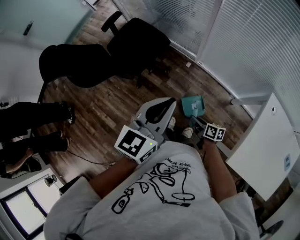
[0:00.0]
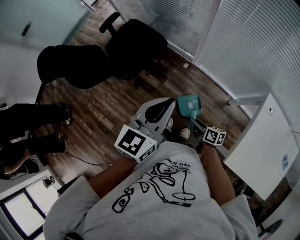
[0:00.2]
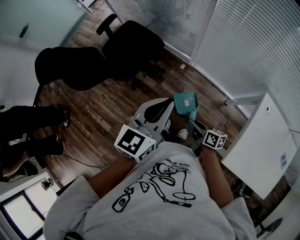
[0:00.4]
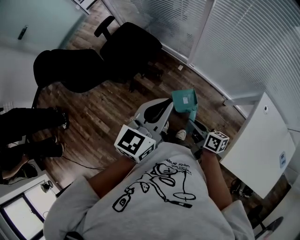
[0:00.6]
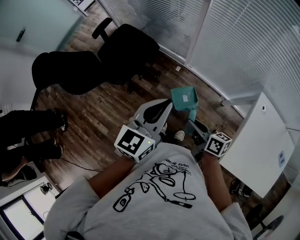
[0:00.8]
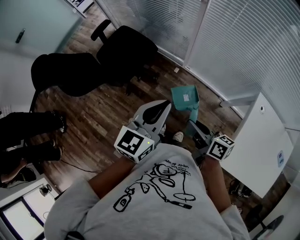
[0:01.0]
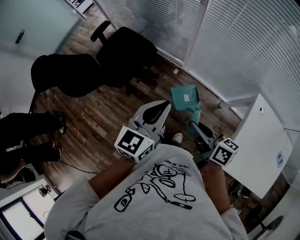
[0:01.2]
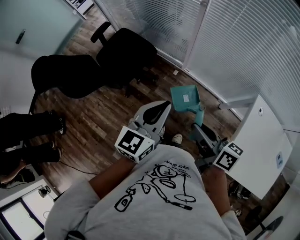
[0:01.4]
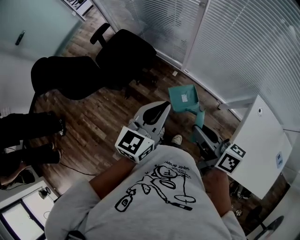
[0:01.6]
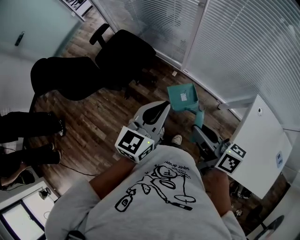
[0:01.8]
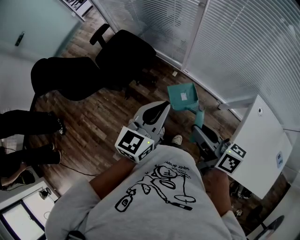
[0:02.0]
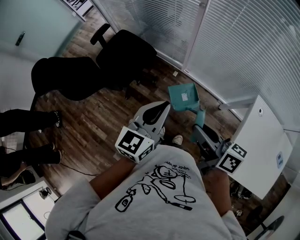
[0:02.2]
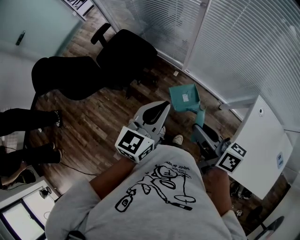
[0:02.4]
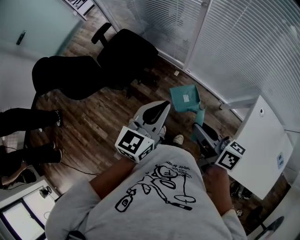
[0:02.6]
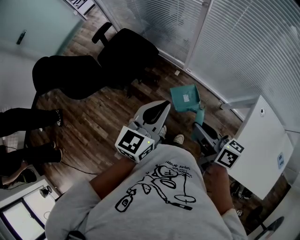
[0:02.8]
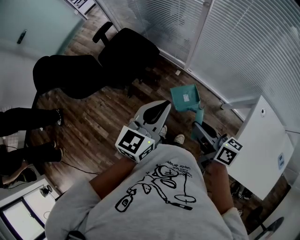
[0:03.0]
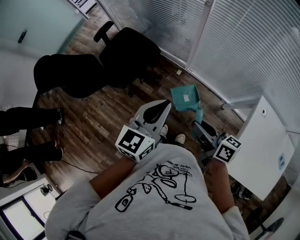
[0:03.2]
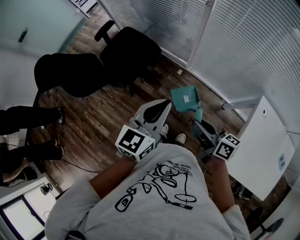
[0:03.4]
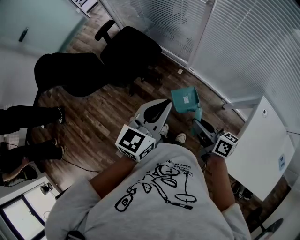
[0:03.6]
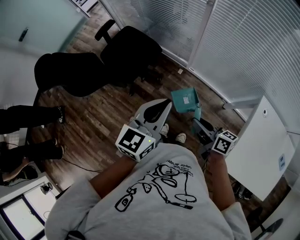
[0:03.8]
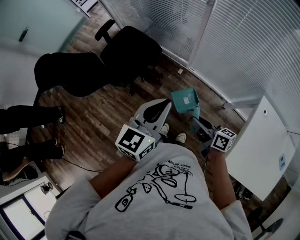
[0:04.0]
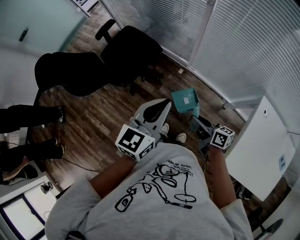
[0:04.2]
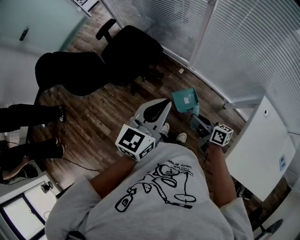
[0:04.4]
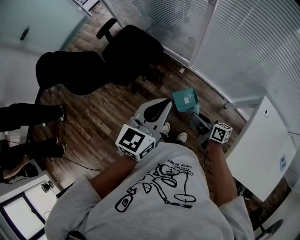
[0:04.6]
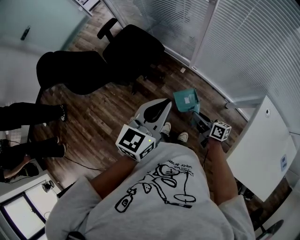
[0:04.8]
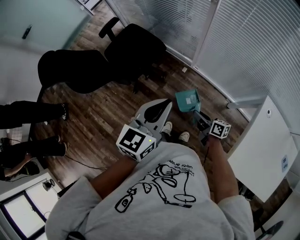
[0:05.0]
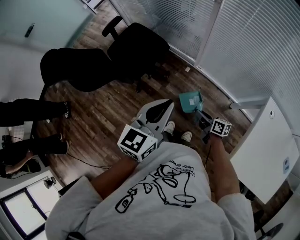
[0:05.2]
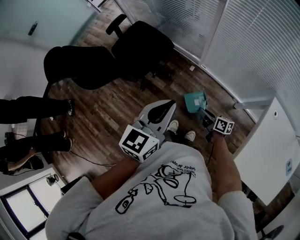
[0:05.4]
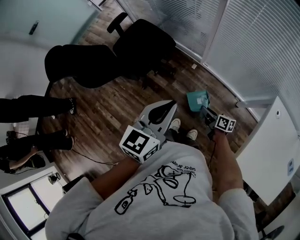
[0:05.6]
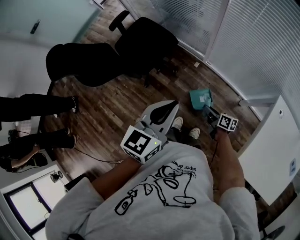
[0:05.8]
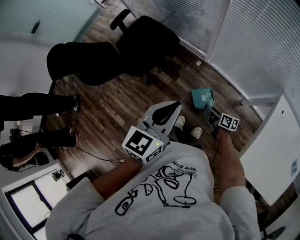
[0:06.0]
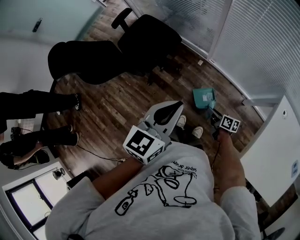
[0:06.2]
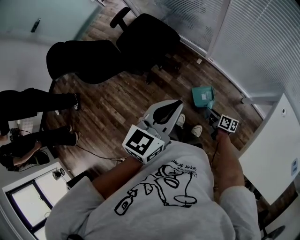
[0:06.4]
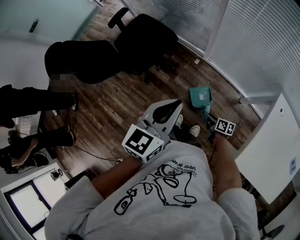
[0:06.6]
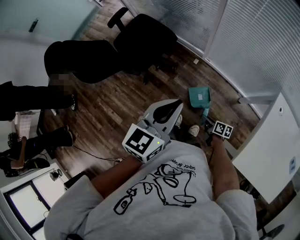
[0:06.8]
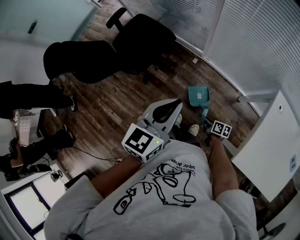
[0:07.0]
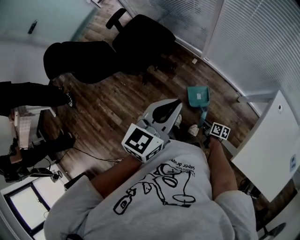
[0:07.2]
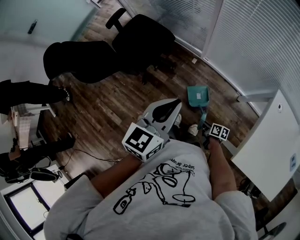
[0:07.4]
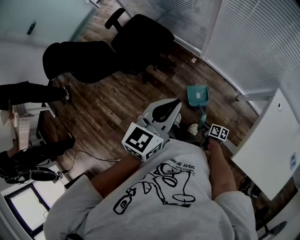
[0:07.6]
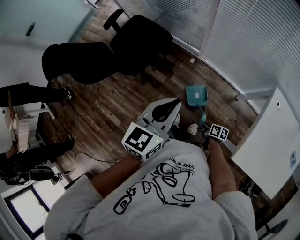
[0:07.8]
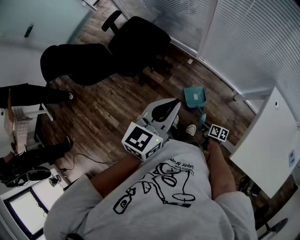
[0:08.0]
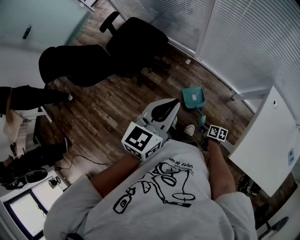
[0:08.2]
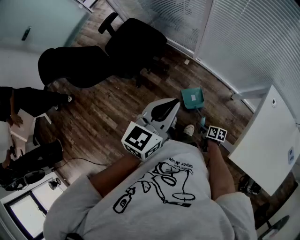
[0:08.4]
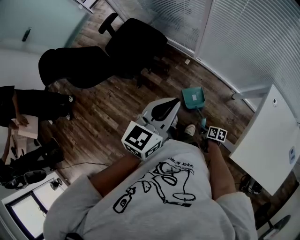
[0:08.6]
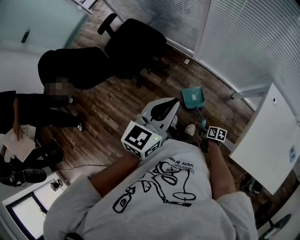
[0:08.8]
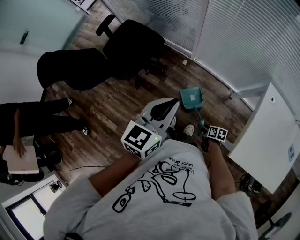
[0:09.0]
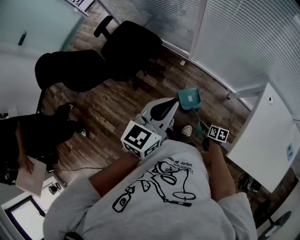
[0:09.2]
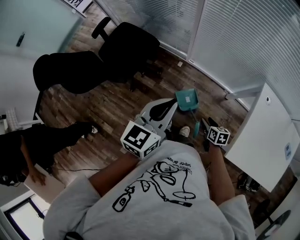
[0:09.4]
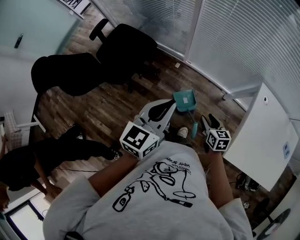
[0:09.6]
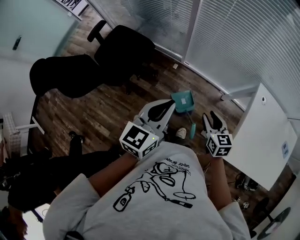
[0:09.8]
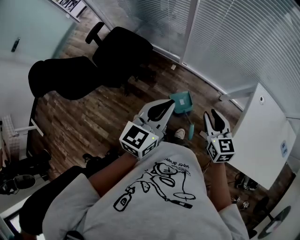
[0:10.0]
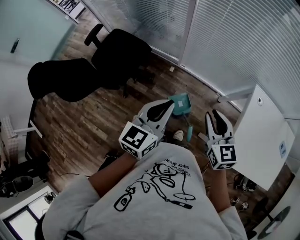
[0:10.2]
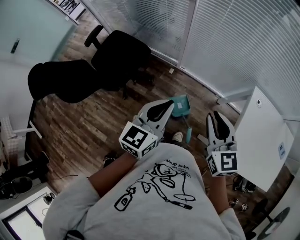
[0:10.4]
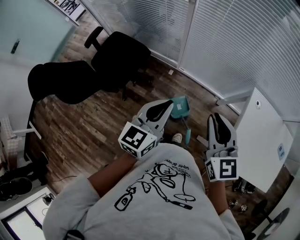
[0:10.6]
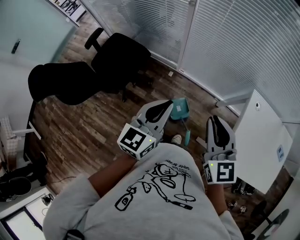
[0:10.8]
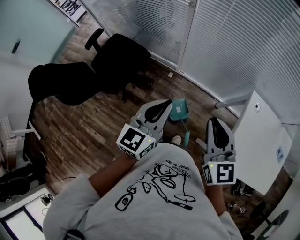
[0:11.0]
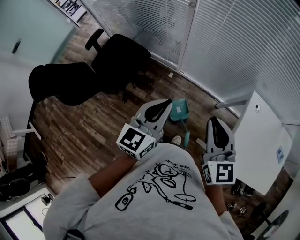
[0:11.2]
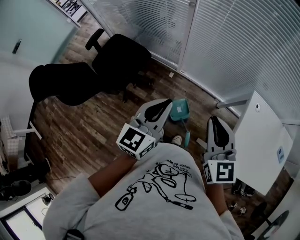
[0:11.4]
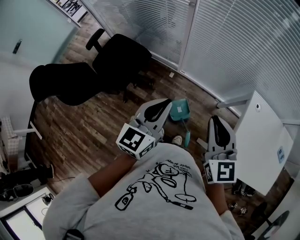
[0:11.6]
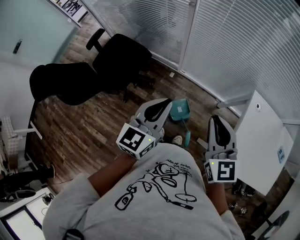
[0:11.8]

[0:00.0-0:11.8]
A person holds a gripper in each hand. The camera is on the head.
0:00.0 to 0:01.4: The right gripper shifts some 30 cm upward, and rotates about 20 degrees.
0:01.4 to 0:03.0: The grippers stay close to where they were, moving slightly.
0:03.0 to 0:04.4: The right gripper heads downward, covering approximately 15 cm.
0:04.4 to 0:06.0: The right gripper goes roughly 15 cm downward.
0:06.0 to 0:07.4: The right gripper heads backward and downward, covering about 15 cm.
0:07.4 to 0:08.8: The right gripper opens.
0:08.8 to 0:10.4: The right gripper is displaced upward by roughly 40 cm, angles its fingers upward, by about 30 degrees, and closes its fingers.
0:10.4 to 0:11.8: The grippers stay close to where they were, moving slightly.

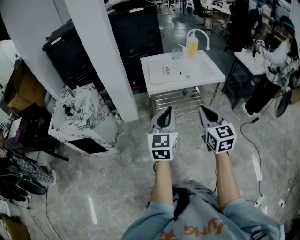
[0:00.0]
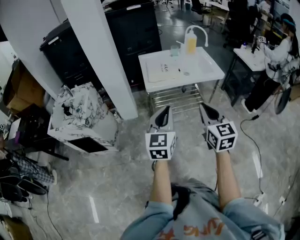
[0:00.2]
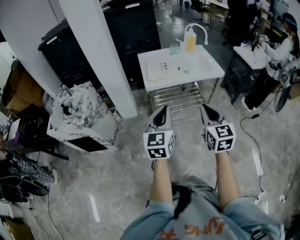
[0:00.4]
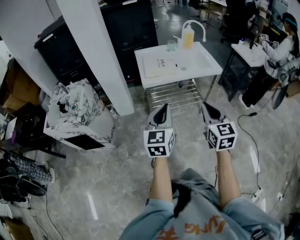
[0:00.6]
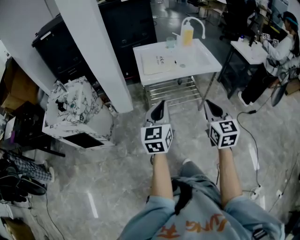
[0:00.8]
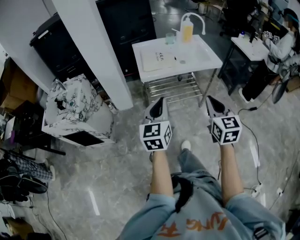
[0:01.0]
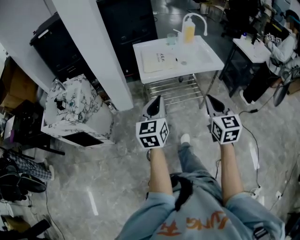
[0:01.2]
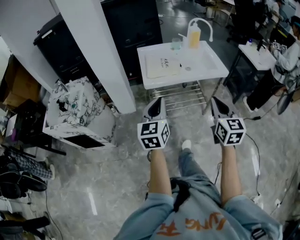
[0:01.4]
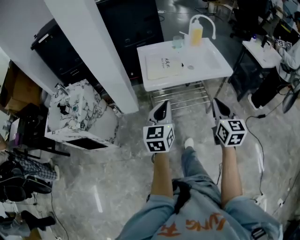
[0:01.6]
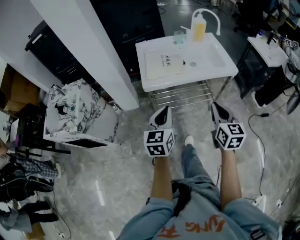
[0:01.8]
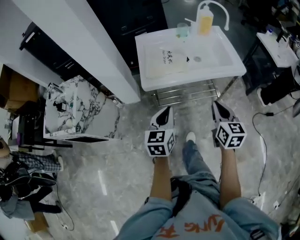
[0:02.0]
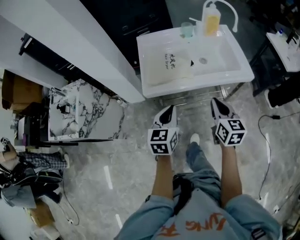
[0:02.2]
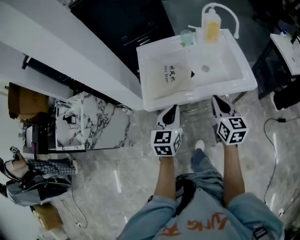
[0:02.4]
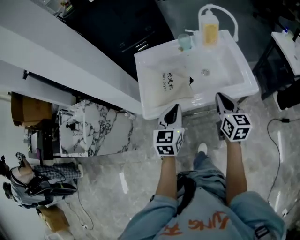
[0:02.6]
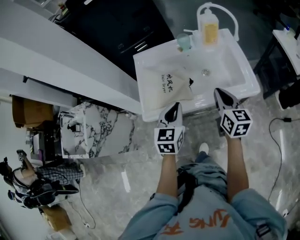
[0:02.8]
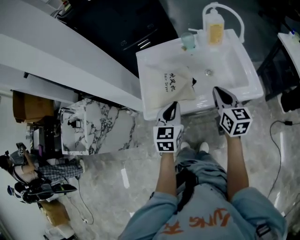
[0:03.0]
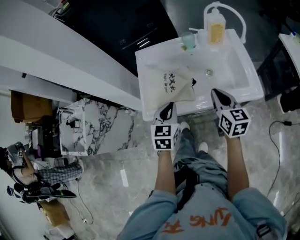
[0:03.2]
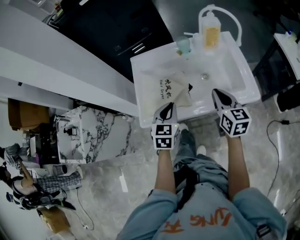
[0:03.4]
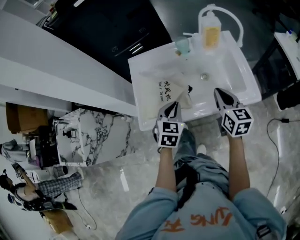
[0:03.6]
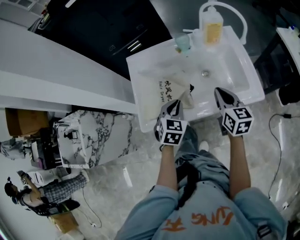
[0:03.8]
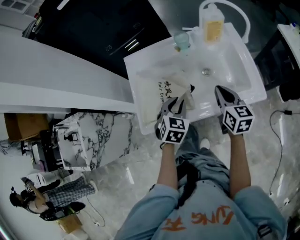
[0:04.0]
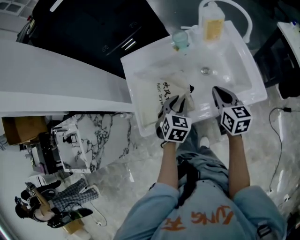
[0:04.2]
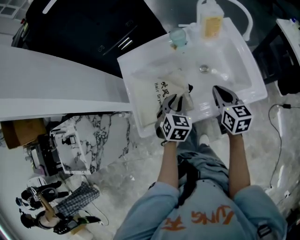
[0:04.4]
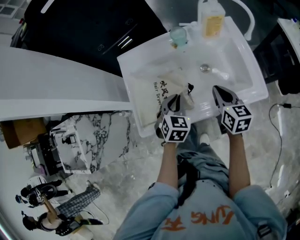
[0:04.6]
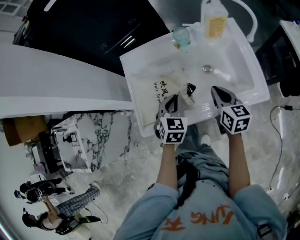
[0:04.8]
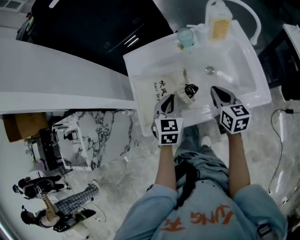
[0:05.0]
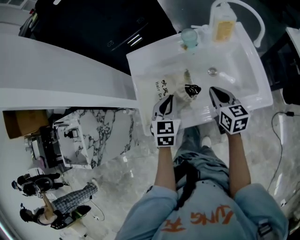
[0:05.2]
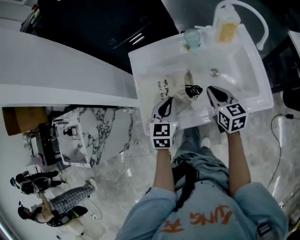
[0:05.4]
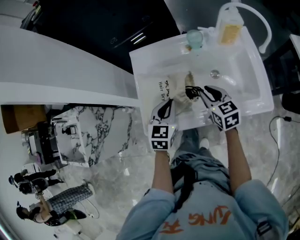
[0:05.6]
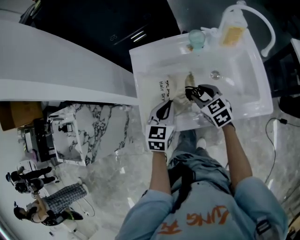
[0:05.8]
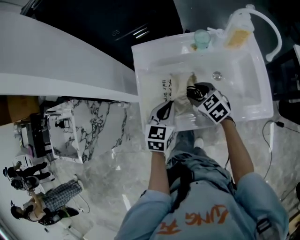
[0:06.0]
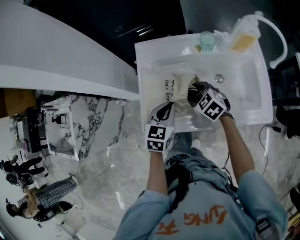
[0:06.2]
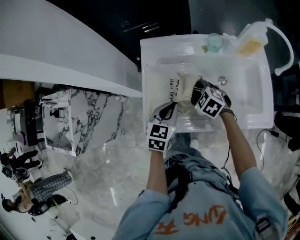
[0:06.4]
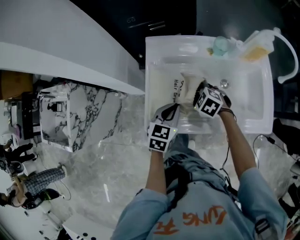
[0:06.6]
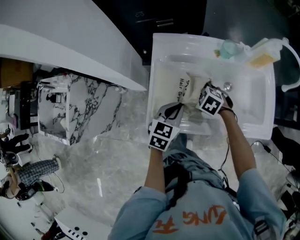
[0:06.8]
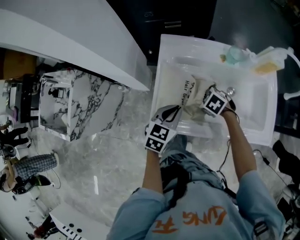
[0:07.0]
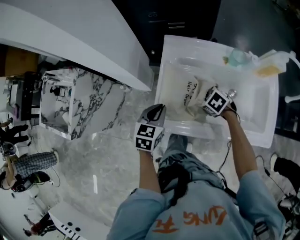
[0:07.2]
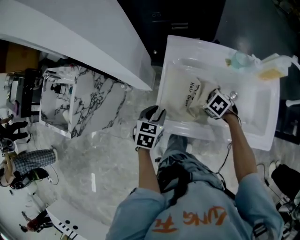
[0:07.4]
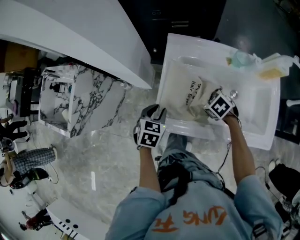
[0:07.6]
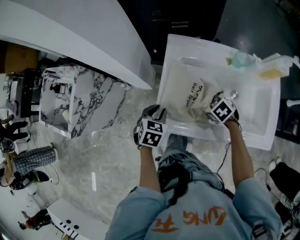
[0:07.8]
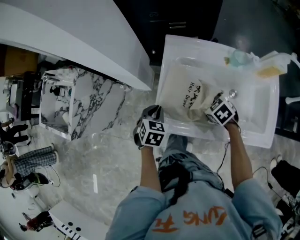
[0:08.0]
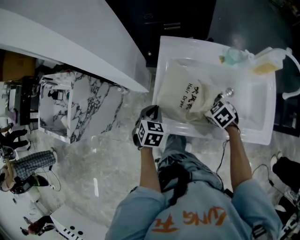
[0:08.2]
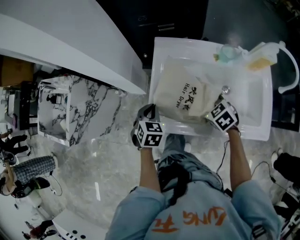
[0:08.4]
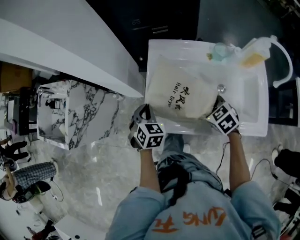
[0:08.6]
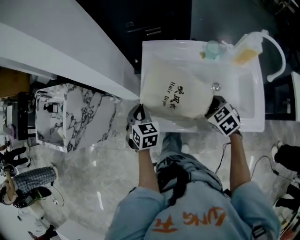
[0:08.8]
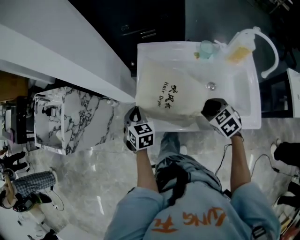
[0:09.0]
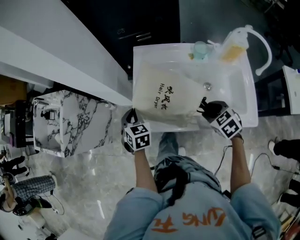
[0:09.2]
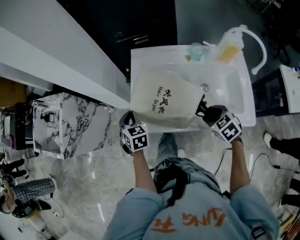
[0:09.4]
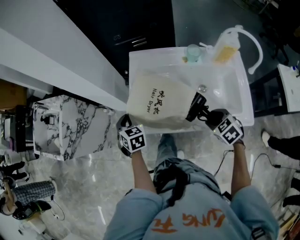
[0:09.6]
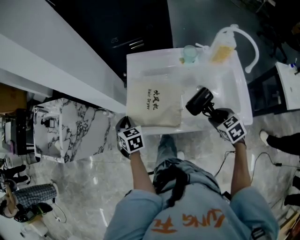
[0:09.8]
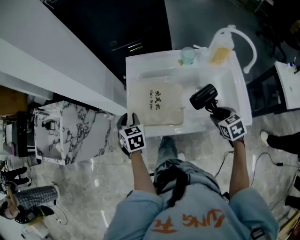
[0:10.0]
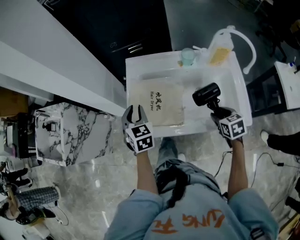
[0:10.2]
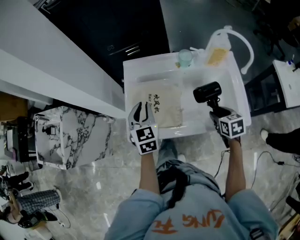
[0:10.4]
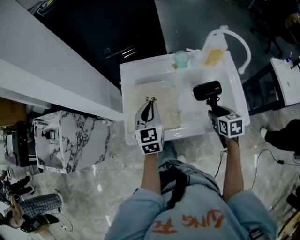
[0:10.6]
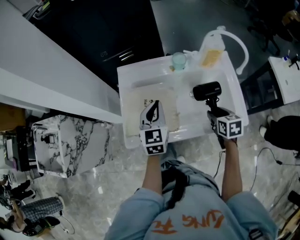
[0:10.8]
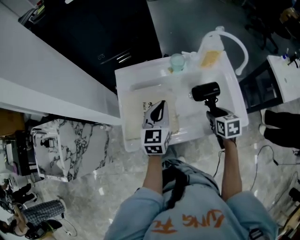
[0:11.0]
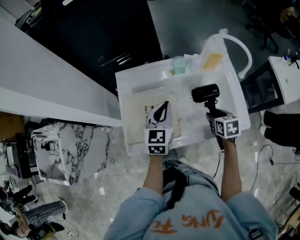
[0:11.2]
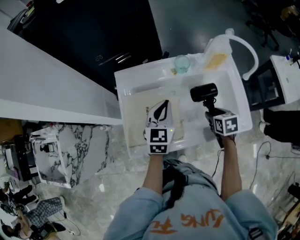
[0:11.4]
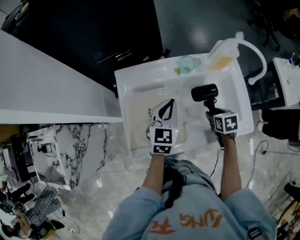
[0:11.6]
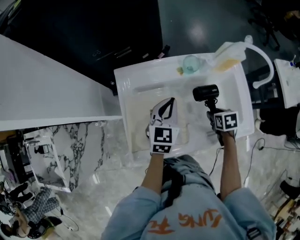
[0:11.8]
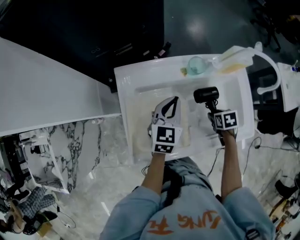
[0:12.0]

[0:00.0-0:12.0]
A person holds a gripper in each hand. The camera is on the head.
0:00.0 to 0:01.6: The right gripper moves forward and to the right, roughly 15 cm. The left gripper goes about 15 cm forward and downward.
0:01.6 to 0:03.0: The two grippers go roughly 35 cm forward.
0:03.0 to 0:04.4: The two grippers go about 15 cm forward and downward. The left gripper changes its angle by about 30 degrees.
0:04.4 to 0:06.0: The right gripper travels to the left and downward by approximately 20 cm, changes its angle by about 50 degrees, and opens up; the left gripper is displaced to the left by approximately 10 cm, and rotates about 30 degrees.
0:06.0 to 0:07.6: The left gripper moves to the left and downward, roughly 15 cm, rotates some 20 degrees, and opens up. Meanwhile the right gripper heads downward, covering some 5 cm, and swivels approximately 30 degrees.
0:07.6 to 0:09.0: The left gripper changes its angle by some 20 degrees, and closes up. Meanwhile the right gripper heads backward, upward and to the right, covering roughly 15 cm.
0:09.0 to 0:10.4: The right gripper moves to the right and backward, some 15 cm, and changes its angle by some 40 degrees. Meanwhile the left gripper moves to the right and upward, some 15 cm, and swivels approximately 20 degrees.
0:10.4 to 0:12.0: The left gripper changes place by approximately 15 cm, and swivels approximately 30 degrees. Meanwhile the right gripper moves downward, some 10 cm, and changes its angle by approximately 30 degrees.
